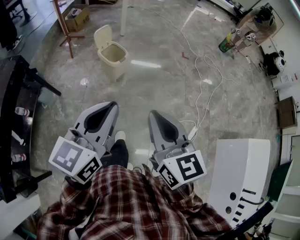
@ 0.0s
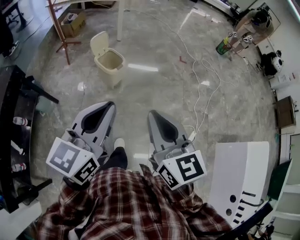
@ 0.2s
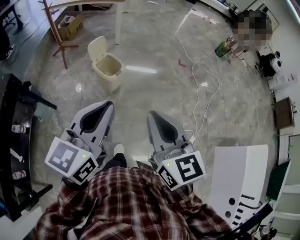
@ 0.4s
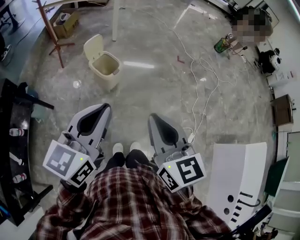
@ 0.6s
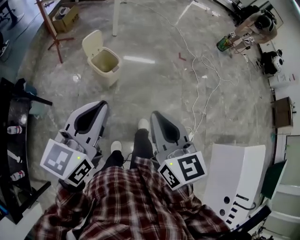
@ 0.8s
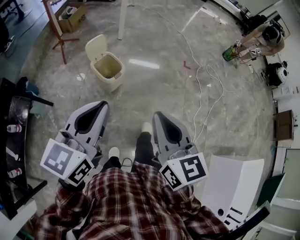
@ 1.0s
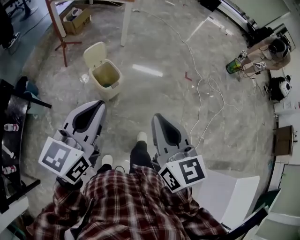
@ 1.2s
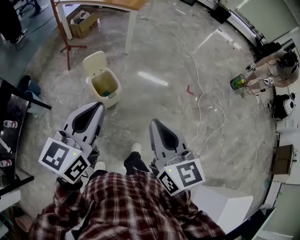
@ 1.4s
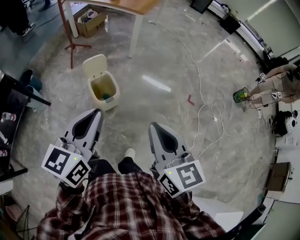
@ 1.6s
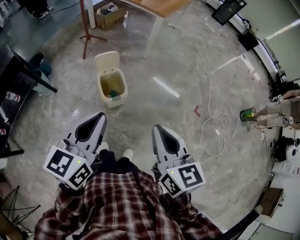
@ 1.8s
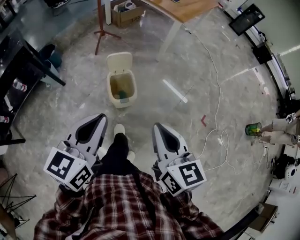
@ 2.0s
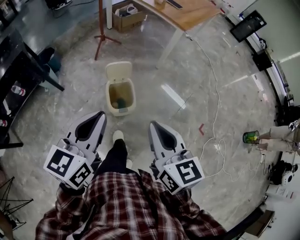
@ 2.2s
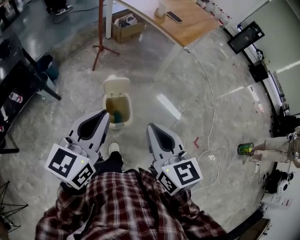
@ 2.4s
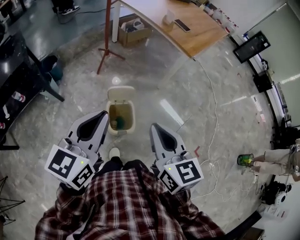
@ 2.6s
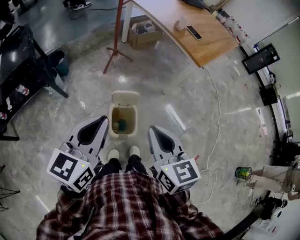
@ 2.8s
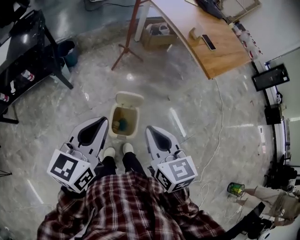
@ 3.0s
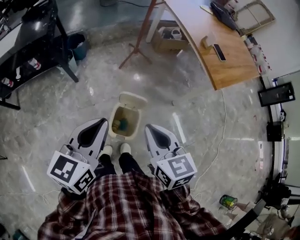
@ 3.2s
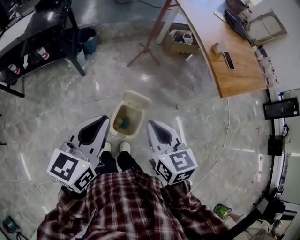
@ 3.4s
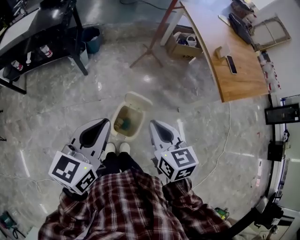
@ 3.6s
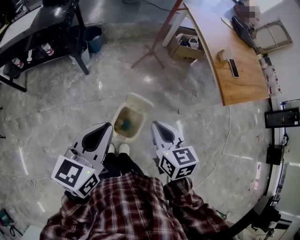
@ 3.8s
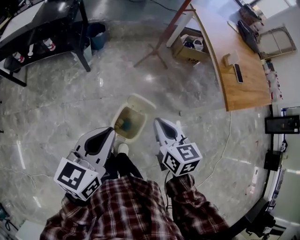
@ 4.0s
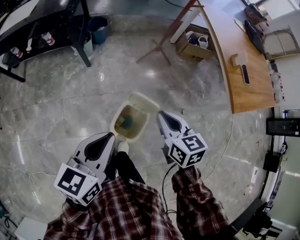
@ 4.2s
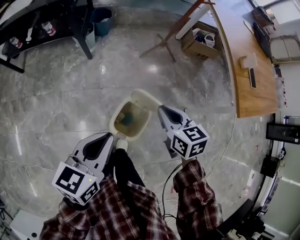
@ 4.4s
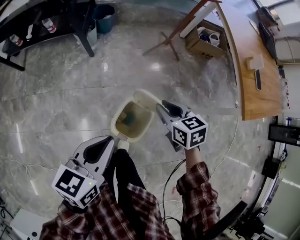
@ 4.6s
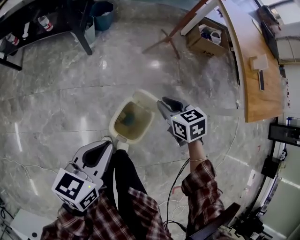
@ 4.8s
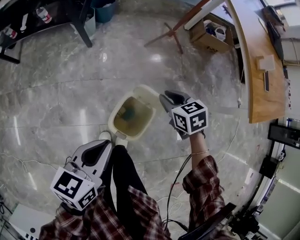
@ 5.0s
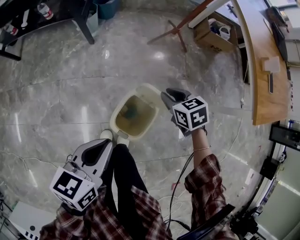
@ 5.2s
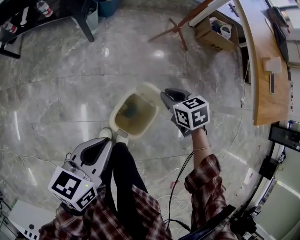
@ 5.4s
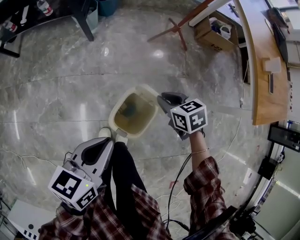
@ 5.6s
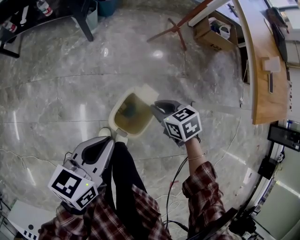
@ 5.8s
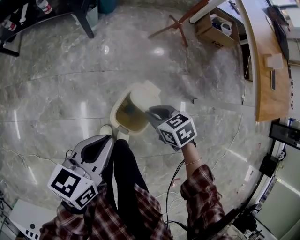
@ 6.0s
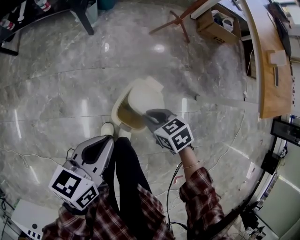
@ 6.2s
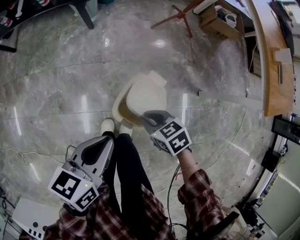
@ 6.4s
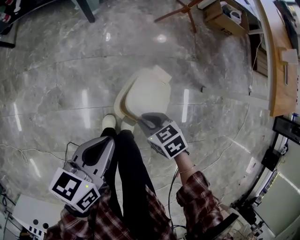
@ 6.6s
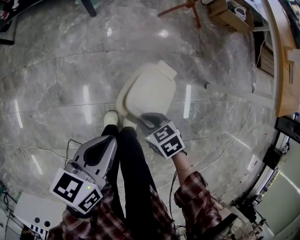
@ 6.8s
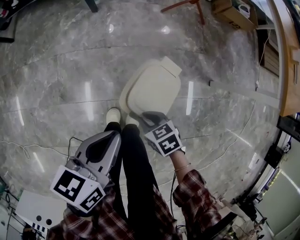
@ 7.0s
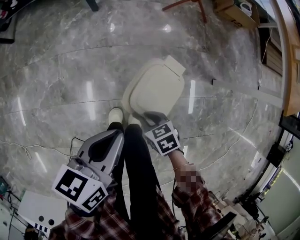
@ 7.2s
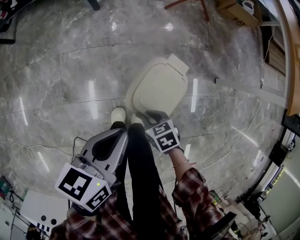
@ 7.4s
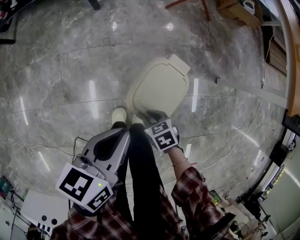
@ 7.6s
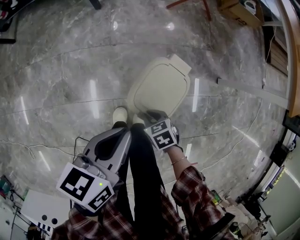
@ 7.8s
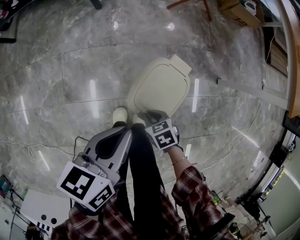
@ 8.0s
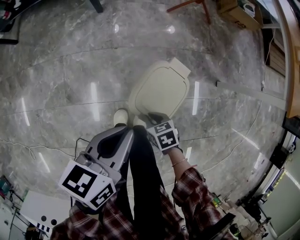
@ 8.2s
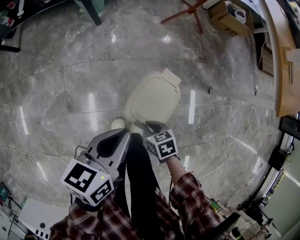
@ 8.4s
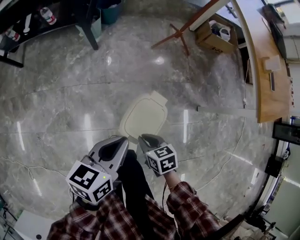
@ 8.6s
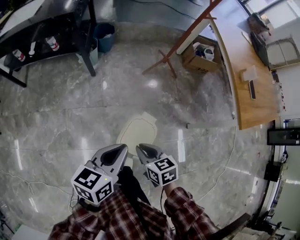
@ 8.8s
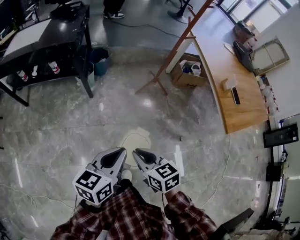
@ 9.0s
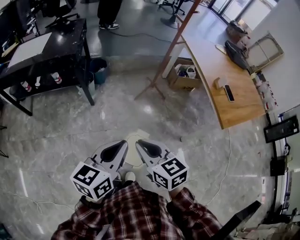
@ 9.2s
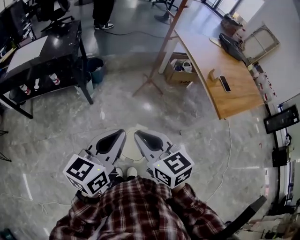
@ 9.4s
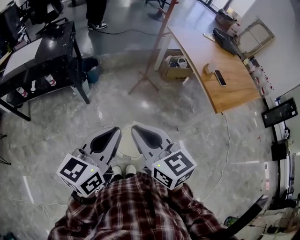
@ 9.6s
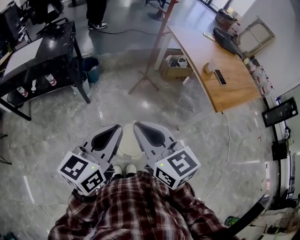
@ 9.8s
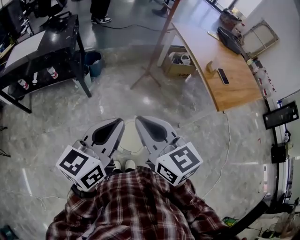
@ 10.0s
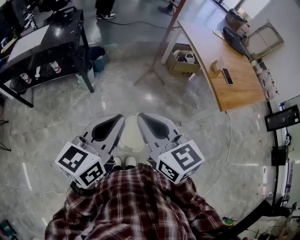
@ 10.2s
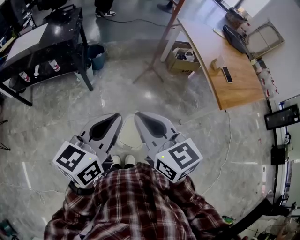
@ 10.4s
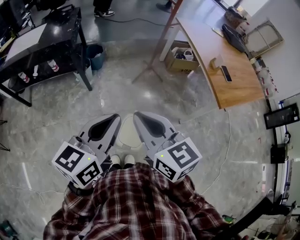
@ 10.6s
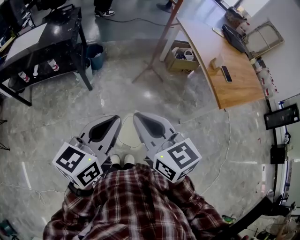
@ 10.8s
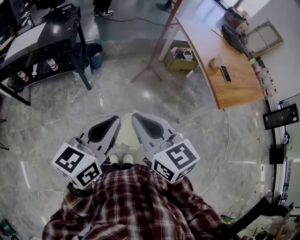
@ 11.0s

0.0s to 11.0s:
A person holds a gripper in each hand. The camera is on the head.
0.0s to 1.6s: The pair of grippers is taken forward, about 40 cm. The left gripper rotates about 30 degrees.
1.6s to 3.2s: The right gripper changes place by approximately 40 cm, and changes its angle by about 50 degrees. The left gripper ends up some 30 cm from where it was, and rotates about 40 degrees.
3.2s to 4.8s: The left gripper goes about 20 cm downward, and changes its angle by roughly 20 degrees. The right gripper shifts some 30 cm downward and forward, and changes its angle by about 40 degrees.
4.8s to 6.2s: The left gripper travels downward by about 5 cm, while the right gripper shifts about 15 cm downward, backward and to the left.
6.2s to 7.8s: The right gripper goes some 20 cm downward, while the left gripper travels downward by approximately 10 cm.
7.8s to 9.4s: The left gripper moves upward, about 40 cm, and swivels approximately 40 degrees. Meanwhile the right gripper moves upward, approximately 60 cm, and tilts its fingers roughly 50 degrees upward.

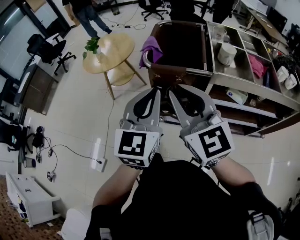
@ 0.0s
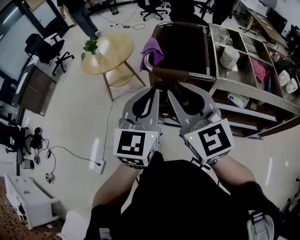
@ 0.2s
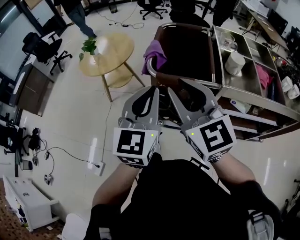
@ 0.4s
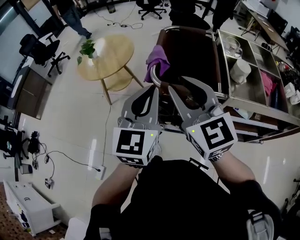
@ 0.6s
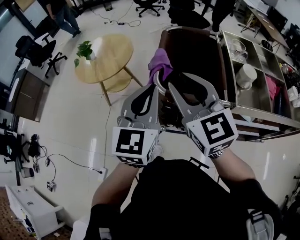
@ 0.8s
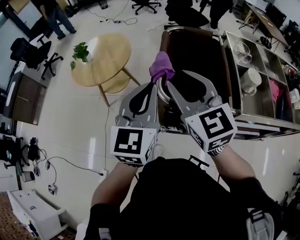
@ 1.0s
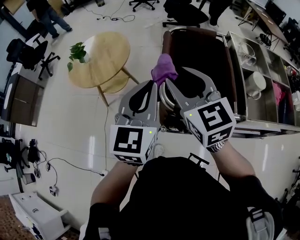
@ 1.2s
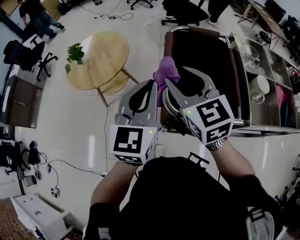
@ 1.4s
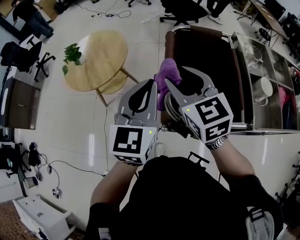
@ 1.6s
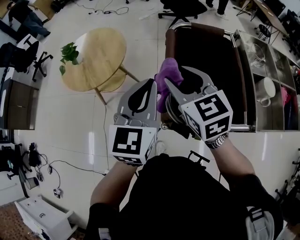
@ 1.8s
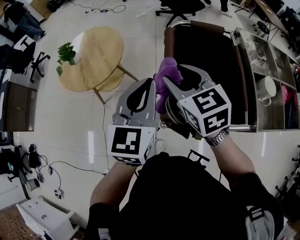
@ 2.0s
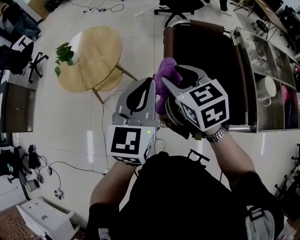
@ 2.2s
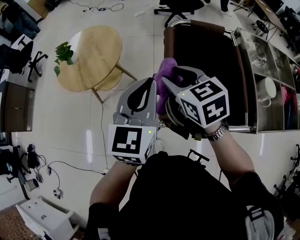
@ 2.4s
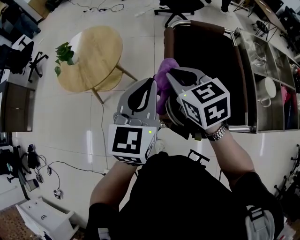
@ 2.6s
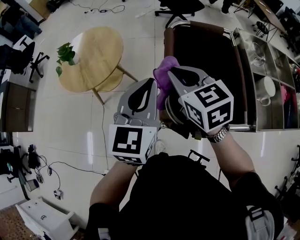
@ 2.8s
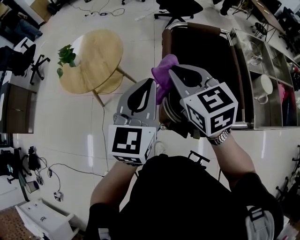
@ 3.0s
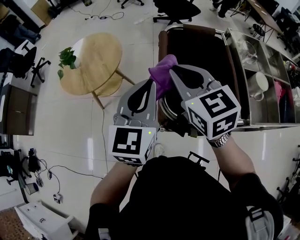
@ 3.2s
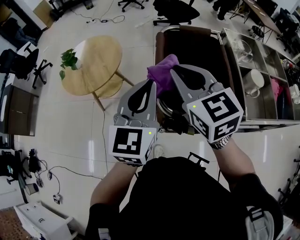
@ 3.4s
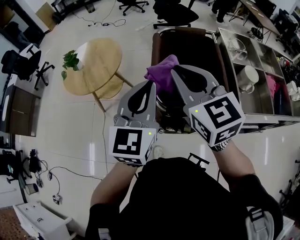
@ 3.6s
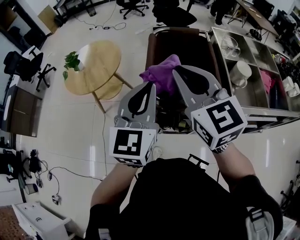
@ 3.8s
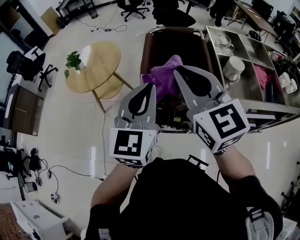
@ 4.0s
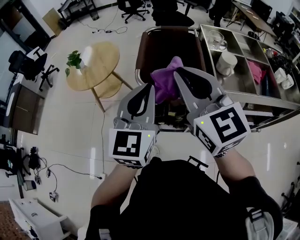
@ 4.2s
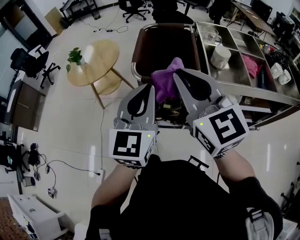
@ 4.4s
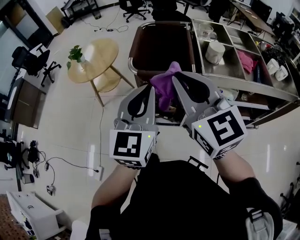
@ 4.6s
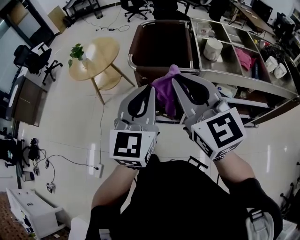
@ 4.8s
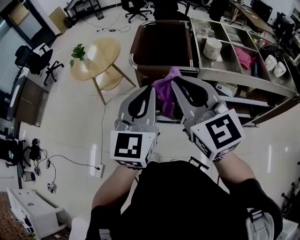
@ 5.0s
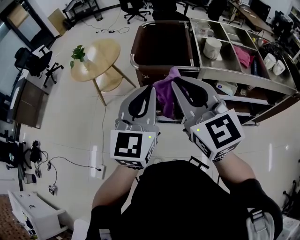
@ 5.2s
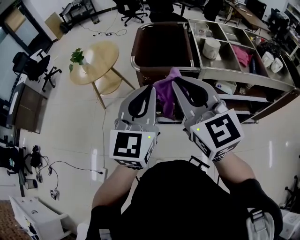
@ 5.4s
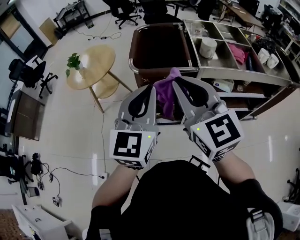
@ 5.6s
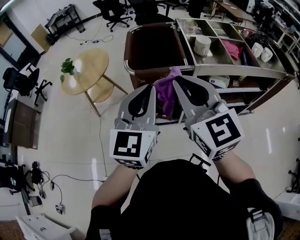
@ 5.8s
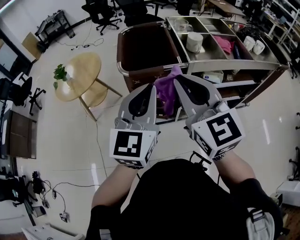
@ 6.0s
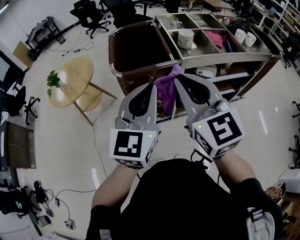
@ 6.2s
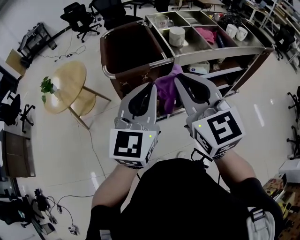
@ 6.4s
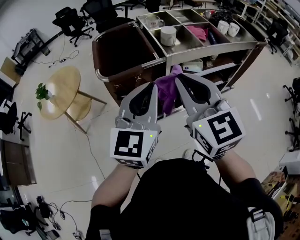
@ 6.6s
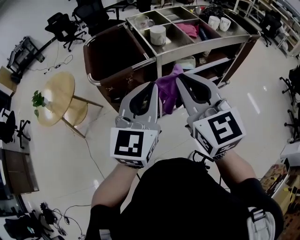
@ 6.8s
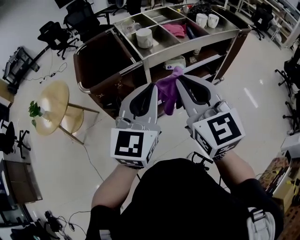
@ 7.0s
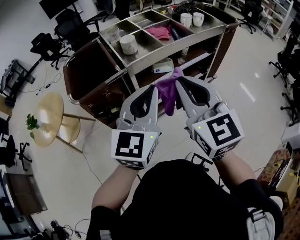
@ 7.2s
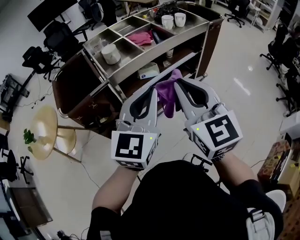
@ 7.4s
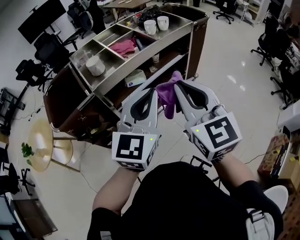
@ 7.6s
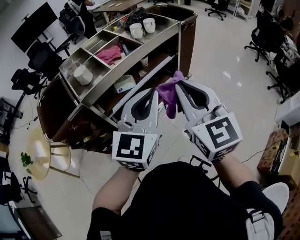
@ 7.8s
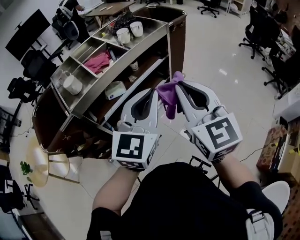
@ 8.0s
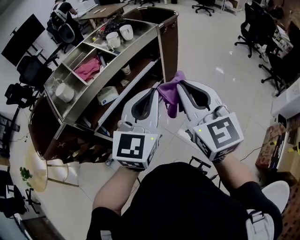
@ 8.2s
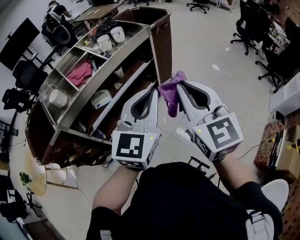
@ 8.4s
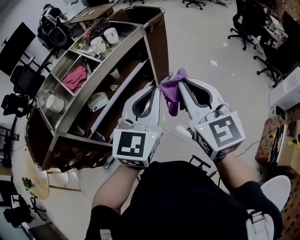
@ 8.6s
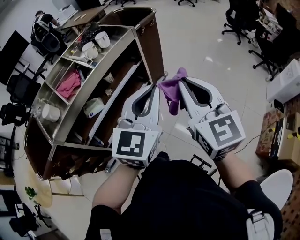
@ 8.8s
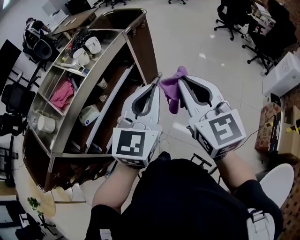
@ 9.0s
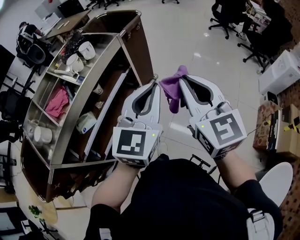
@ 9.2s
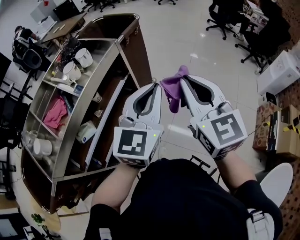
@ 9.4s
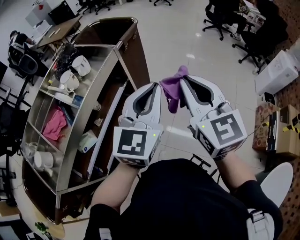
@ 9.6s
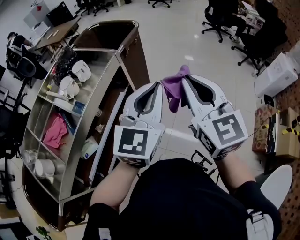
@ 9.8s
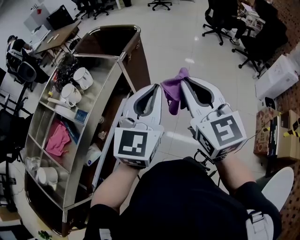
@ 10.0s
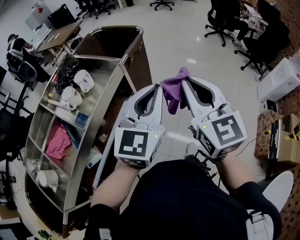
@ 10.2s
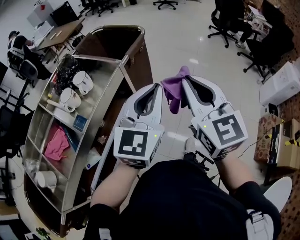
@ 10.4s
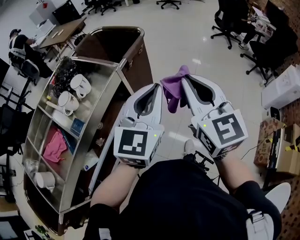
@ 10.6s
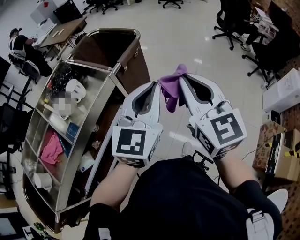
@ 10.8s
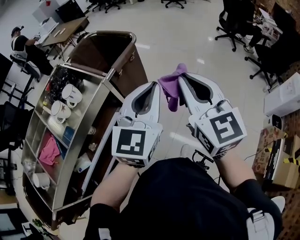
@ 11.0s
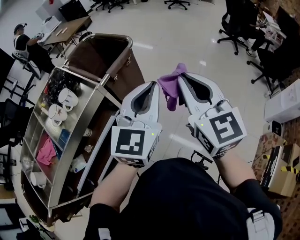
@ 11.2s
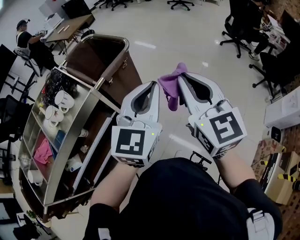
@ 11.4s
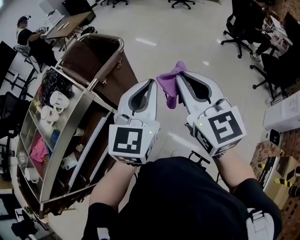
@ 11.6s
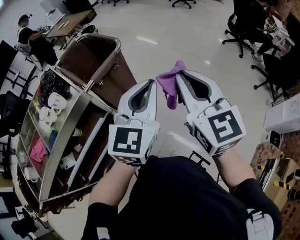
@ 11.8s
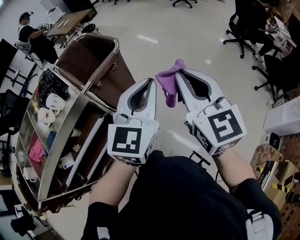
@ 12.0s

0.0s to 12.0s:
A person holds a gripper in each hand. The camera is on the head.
0.0s to 1.6s: The pair of grippers is taken forward, approximately 50 cm. The right gripper opens up.
1.6s to 3.0s: The right gripper reaches approximately 10 cm downward, then returns, and closes its fingers.
3.0s to 4.4s: Both grippers move backward and to the right, approximately 35 cm. The right gripper swivels roughly 30 degrees.
4.4s to 6.0s: The left gripper moves backward and upward, approximately 10 cm, while the right gripper travels backward by roughly 10 cm.
6.0s to 7.6s: The right gripper shifts by approximately 35 cm, and changes its angle by approximately 30 degrees, while the left gripper moves some 35 cm, and rotates some 30 degrees.
7.6s to 9.0s: Both grippers travel together to the right and forward, some 30 cm. The right gripper rotates about 20 degrees.
9.0s to 10.4s: Both grippers travel together forward, about 25 cm.
10.4s to 12.0s: The grippers both shift to the right and forward by roughly 30 cm.

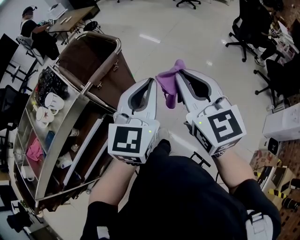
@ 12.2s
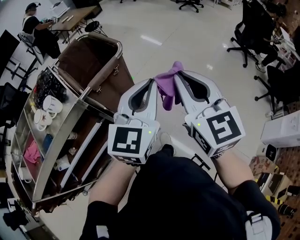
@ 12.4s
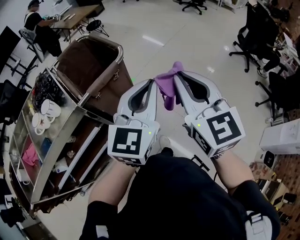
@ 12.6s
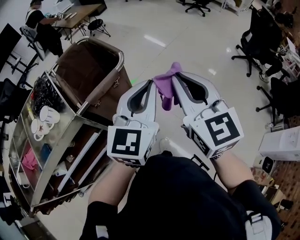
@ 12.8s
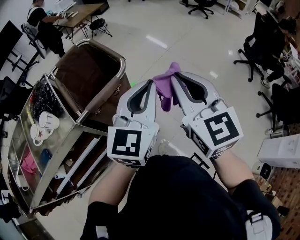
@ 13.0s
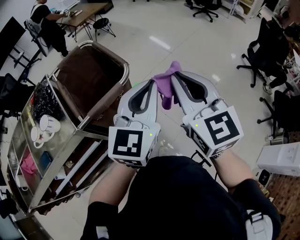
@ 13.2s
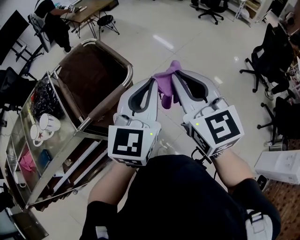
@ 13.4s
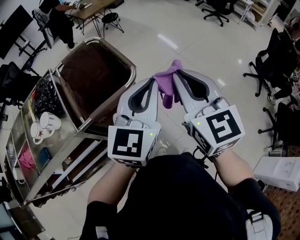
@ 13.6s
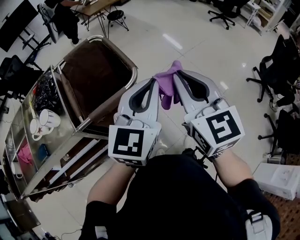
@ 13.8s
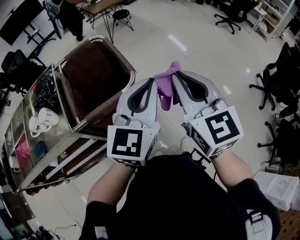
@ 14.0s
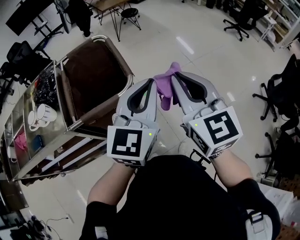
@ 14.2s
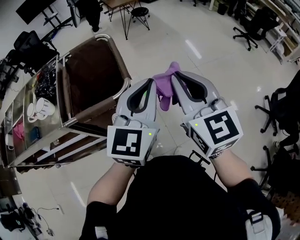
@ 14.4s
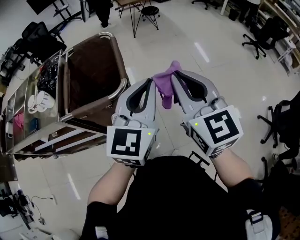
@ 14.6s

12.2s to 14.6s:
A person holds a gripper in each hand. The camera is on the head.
12.2s to 13.4s: The grippers both shift forward by roughly 25 cm.
13.4s to 14.6s: The left gripper changes place by roughly 15 cm, and rotates roughly 30 degrees, while the right gripper ends up approximately 15 cm from where it was, and turns by some 20 degrees.
